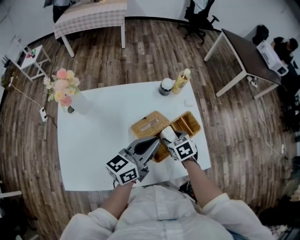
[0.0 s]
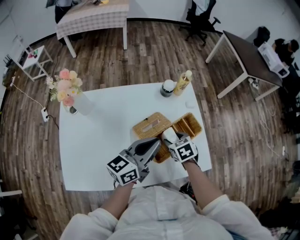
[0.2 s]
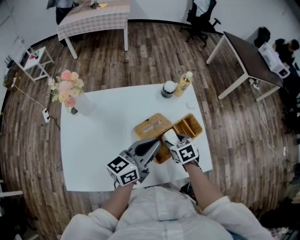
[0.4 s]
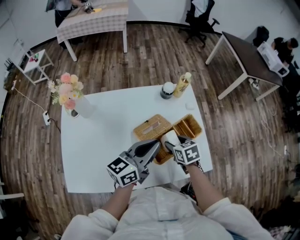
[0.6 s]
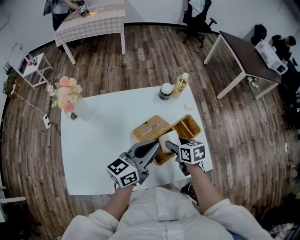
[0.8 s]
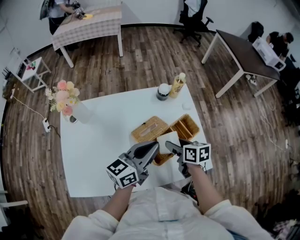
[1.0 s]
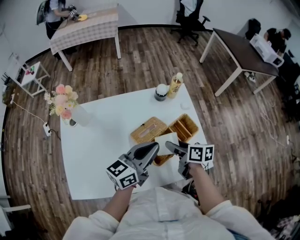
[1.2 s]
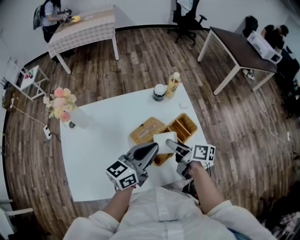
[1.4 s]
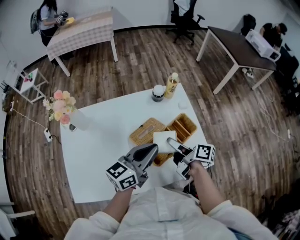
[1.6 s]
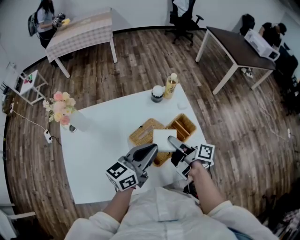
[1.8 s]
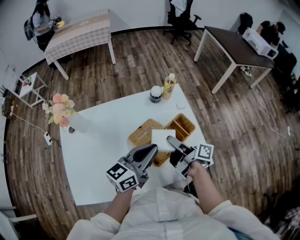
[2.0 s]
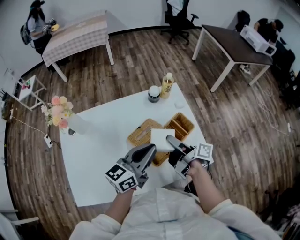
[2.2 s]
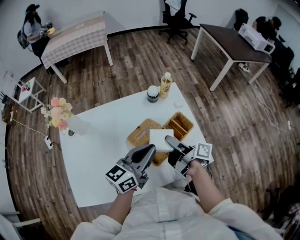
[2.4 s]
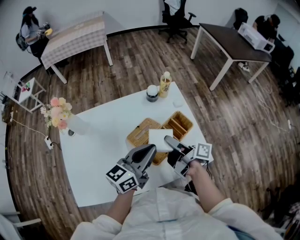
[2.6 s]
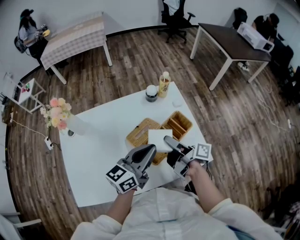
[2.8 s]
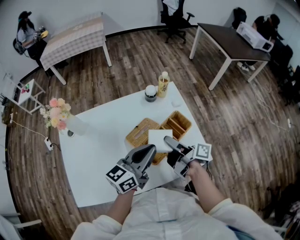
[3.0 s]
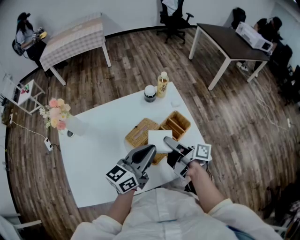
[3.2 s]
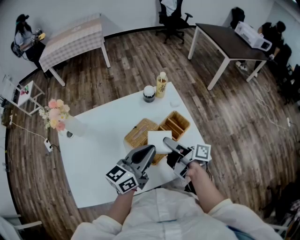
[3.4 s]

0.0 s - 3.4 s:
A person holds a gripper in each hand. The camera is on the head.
0.0 s - 1.6 s: The right gripper travels upward by approximately 10 cm, and rotates around the line of its fingers by about 70 degrees, clockwise from behind.
1.6 s - 3.4 s: There are only small adjustments of the grippers.

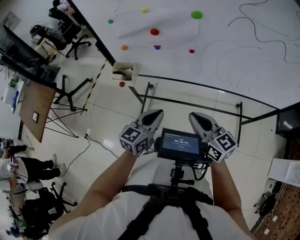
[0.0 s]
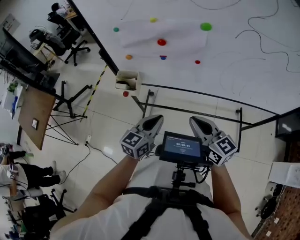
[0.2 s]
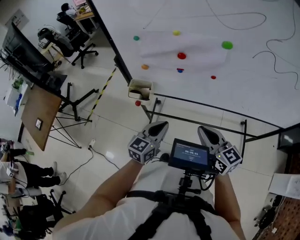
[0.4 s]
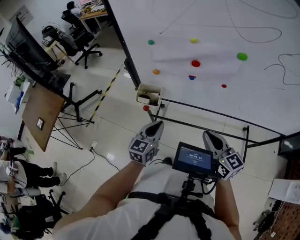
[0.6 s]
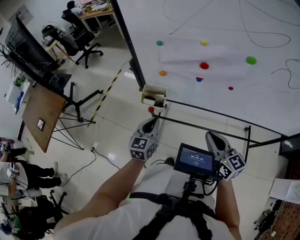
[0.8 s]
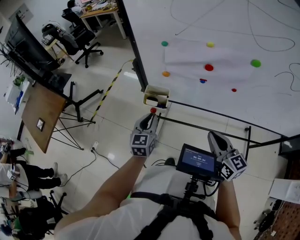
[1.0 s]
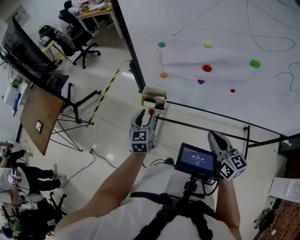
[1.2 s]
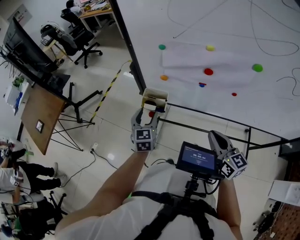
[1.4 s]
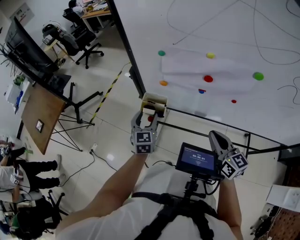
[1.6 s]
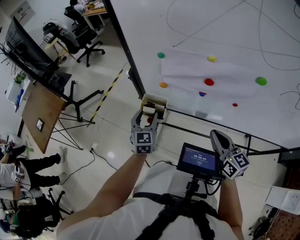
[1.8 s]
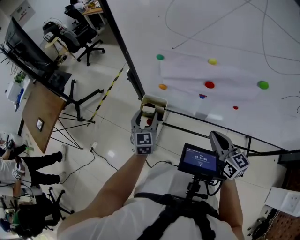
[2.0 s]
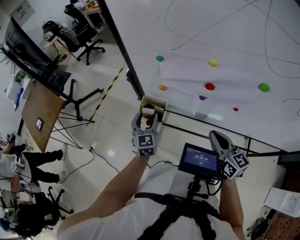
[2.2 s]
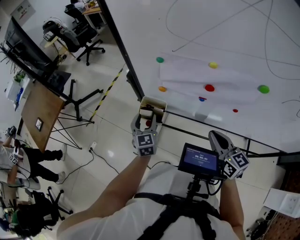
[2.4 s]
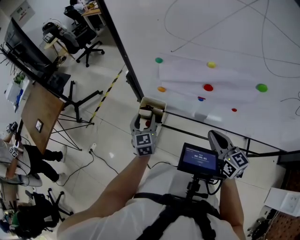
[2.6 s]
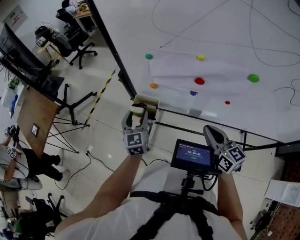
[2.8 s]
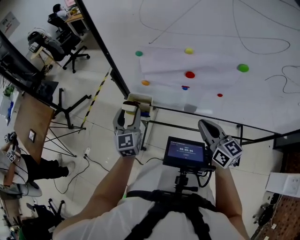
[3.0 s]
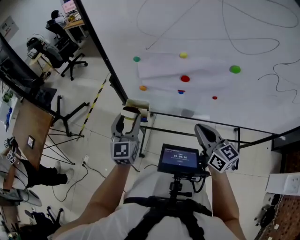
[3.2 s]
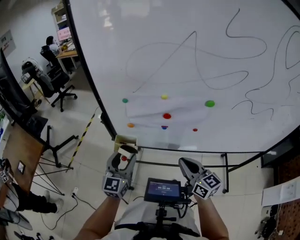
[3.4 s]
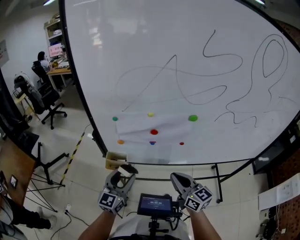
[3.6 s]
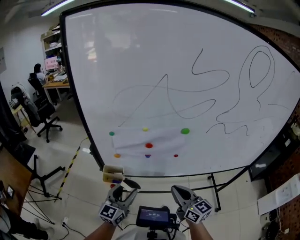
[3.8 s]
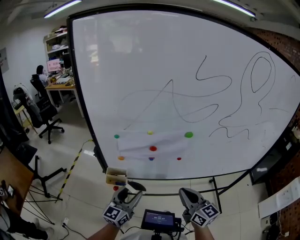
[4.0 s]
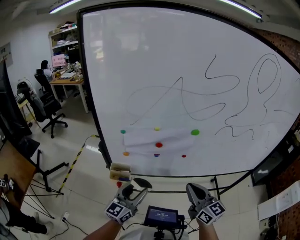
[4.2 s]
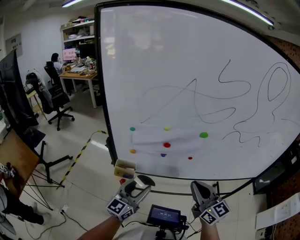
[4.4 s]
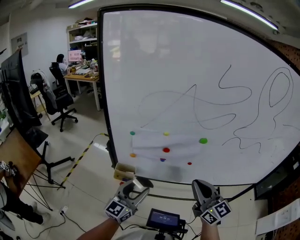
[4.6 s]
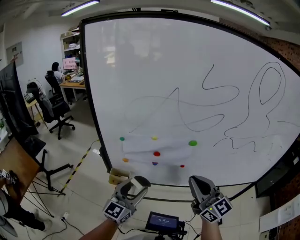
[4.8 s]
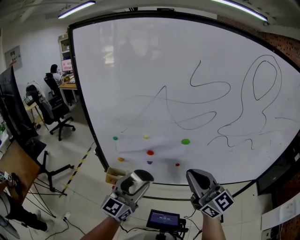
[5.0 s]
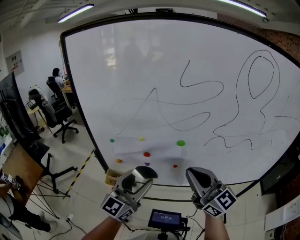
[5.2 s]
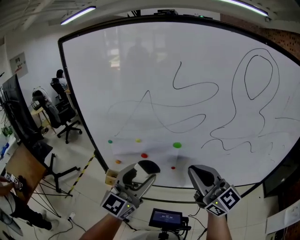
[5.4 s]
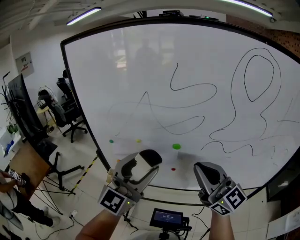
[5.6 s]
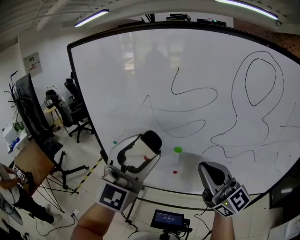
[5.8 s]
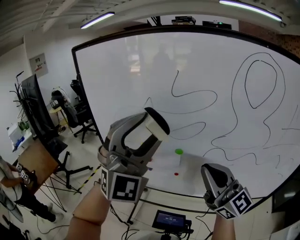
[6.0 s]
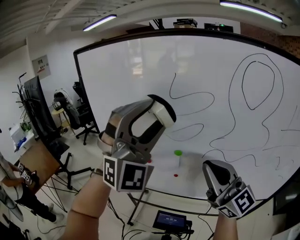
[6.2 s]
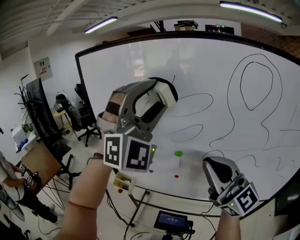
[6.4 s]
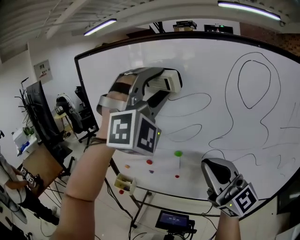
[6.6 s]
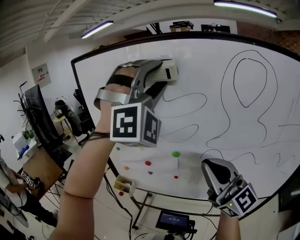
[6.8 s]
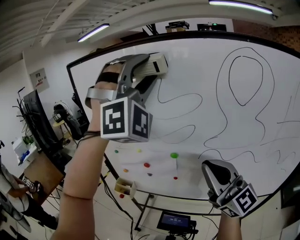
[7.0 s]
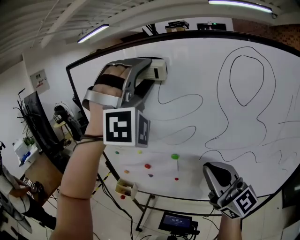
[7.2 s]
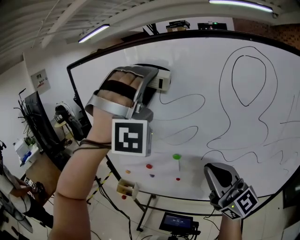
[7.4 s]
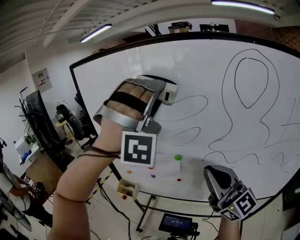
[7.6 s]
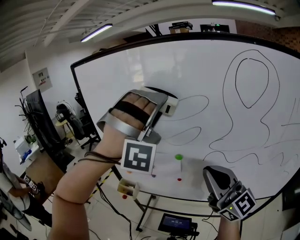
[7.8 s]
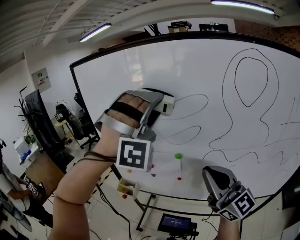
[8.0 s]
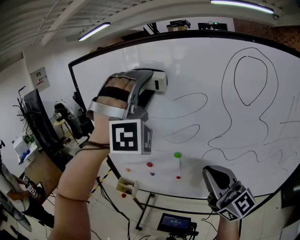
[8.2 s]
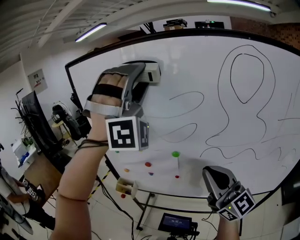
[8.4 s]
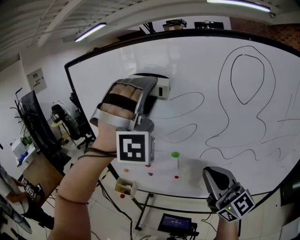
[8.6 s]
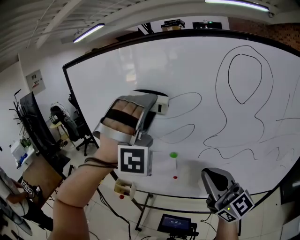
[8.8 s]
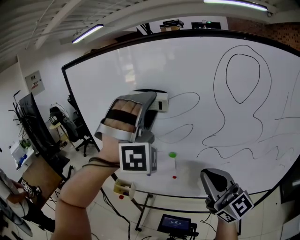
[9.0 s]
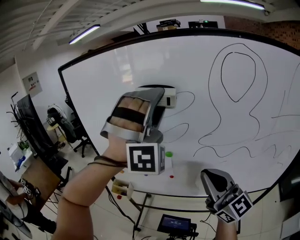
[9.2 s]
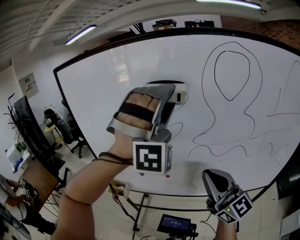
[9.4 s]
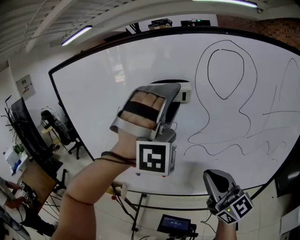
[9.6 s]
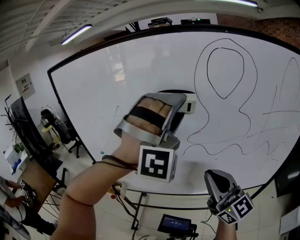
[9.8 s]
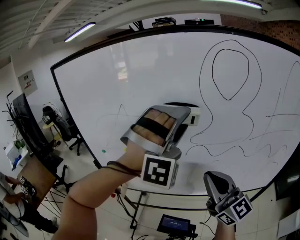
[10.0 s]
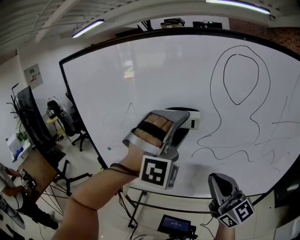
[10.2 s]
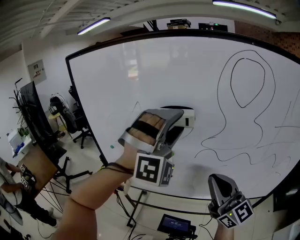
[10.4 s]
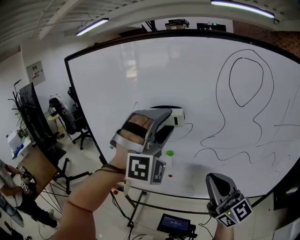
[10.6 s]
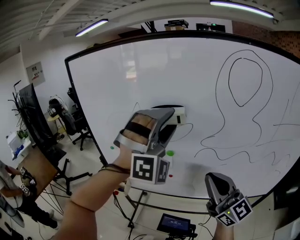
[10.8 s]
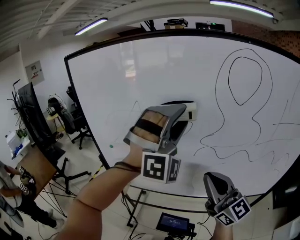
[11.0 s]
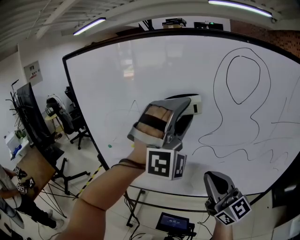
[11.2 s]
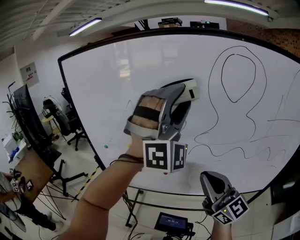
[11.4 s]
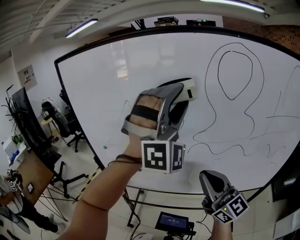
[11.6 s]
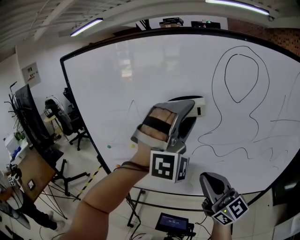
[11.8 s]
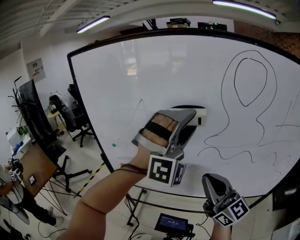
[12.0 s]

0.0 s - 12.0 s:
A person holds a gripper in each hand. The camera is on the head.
0.0 s - 1.6 s: The right gripper changes place by some 20 cm.
3.0 s - 4.4 s: The right gripper shifts some 15 cm upward, and rotates about 20 degrees.
4.4 s - 6.0 s: The right gripper moves upward, about 20 cm, and rotates approximately 30 degrees.

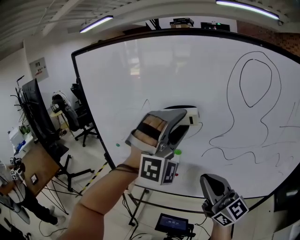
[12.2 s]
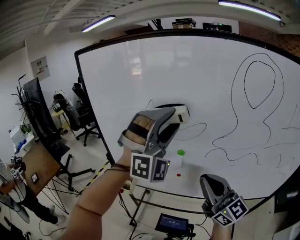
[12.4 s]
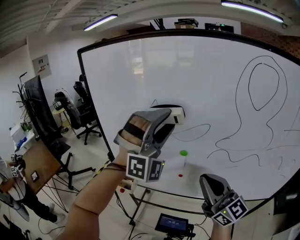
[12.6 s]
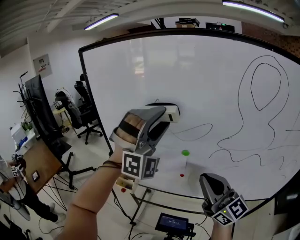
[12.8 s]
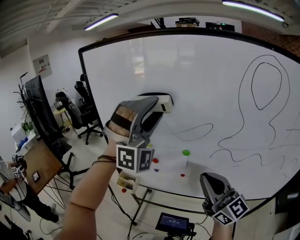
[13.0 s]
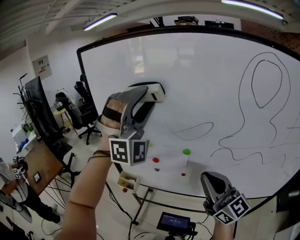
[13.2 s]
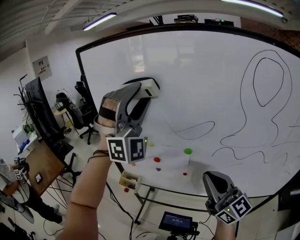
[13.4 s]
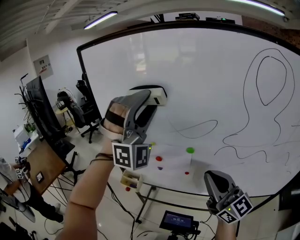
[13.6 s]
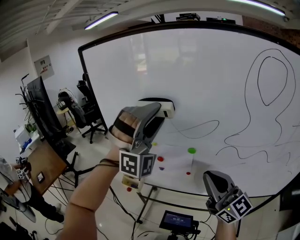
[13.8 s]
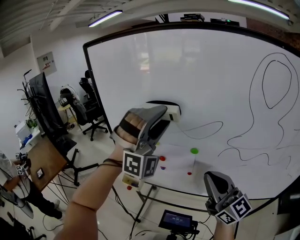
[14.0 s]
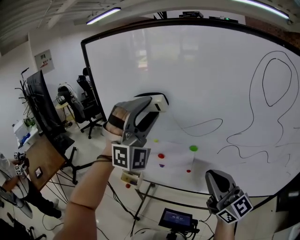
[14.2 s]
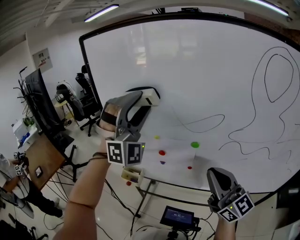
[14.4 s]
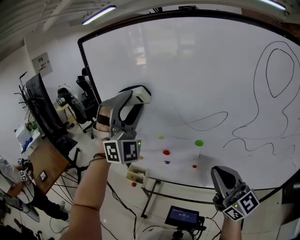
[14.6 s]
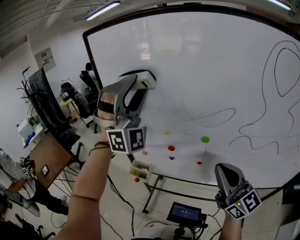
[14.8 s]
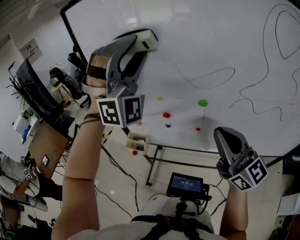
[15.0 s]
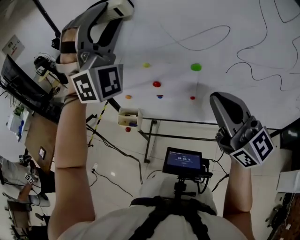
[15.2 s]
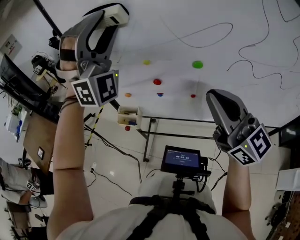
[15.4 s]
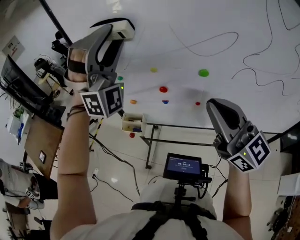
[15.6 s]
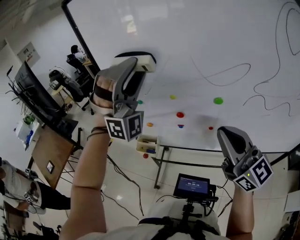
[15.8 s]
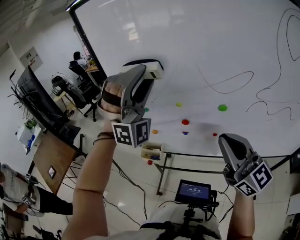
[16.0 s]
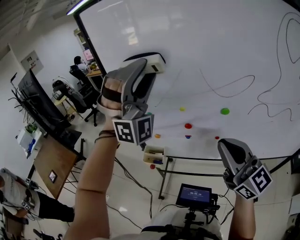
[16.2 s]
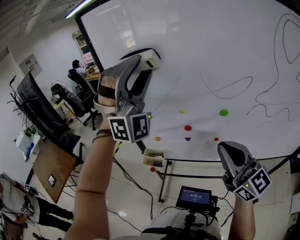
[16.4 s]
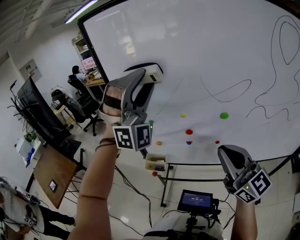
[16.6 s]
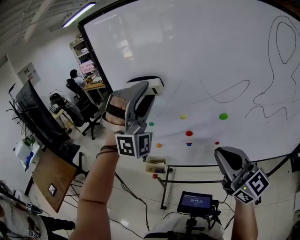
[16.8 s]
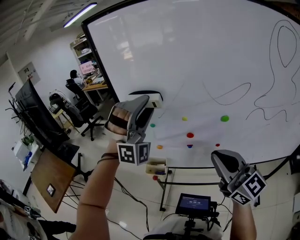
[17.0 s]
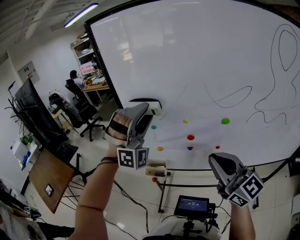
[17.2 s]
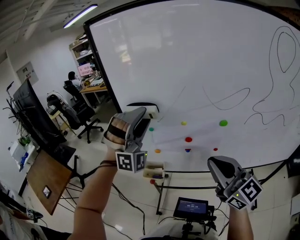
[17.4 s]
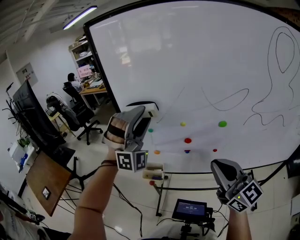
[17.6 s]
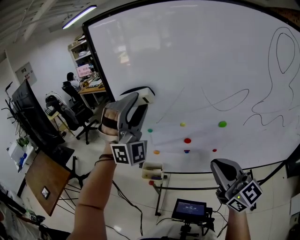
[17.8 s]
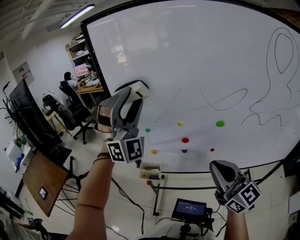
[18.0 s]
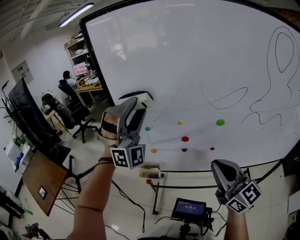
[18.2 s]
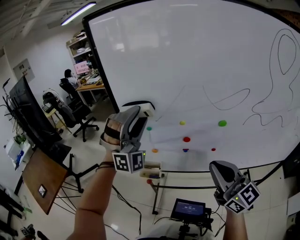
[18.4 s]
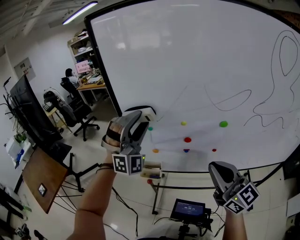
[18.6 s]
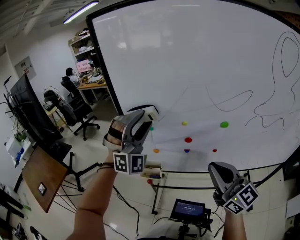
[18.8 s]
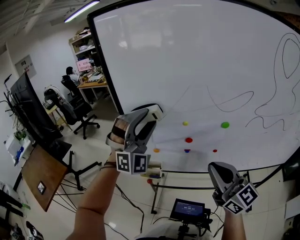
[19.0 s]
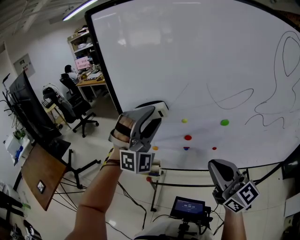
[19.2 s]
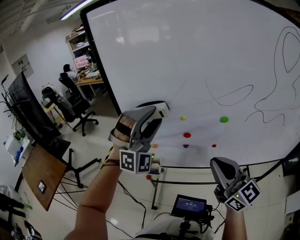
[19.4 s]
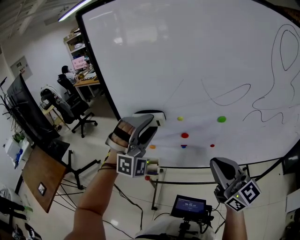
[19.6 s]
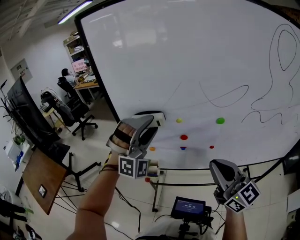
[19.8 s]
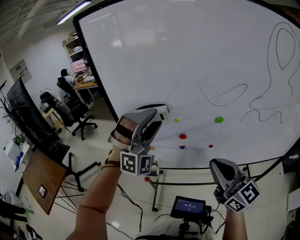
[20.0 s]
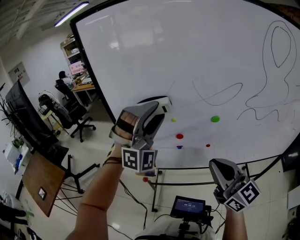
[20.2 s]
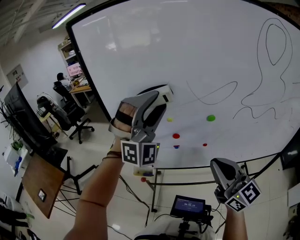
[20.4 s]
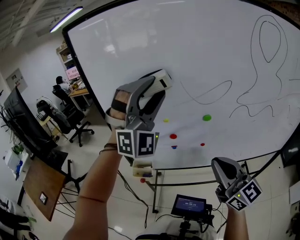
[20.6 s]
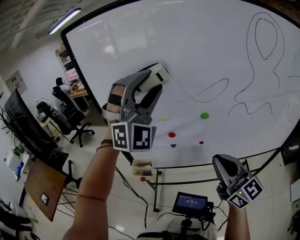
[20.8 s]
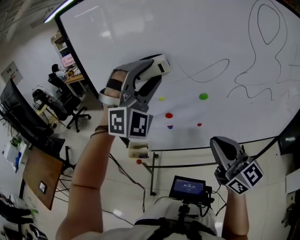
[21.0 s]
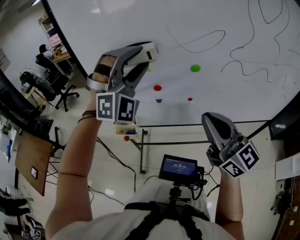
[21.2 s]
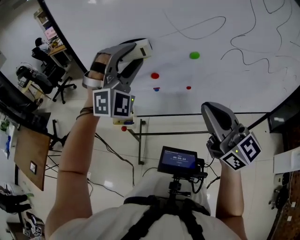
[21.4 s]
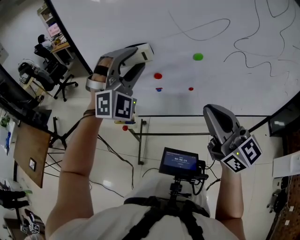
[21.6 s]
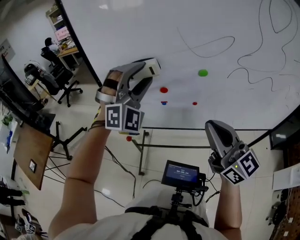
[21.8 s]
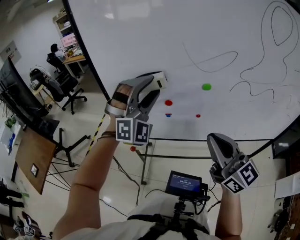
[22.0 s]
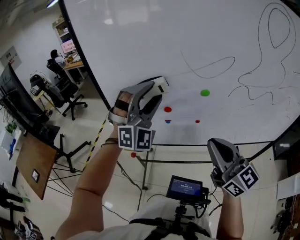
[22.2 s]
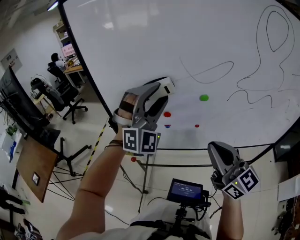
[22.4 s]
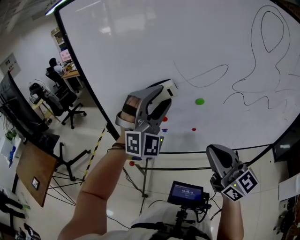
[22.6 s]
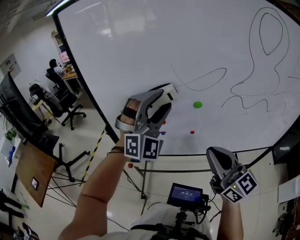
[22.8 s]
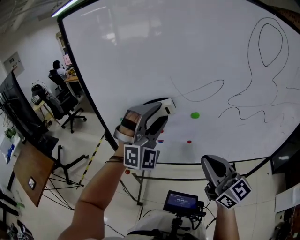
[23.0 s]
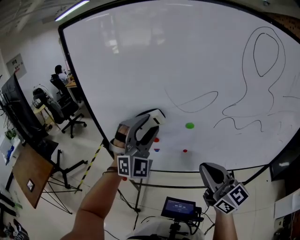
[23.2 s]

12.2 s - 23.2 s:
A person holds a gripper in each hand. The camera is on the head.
13.8 s - 15.4 s: The right gripper changes place by approximately 5 cm.
15.4 s - 17.0 s: The right gripper shifts by roughly 10 cm.
20.0 s - 21.6 s: The right gripper shifts by about 5 cm.
21.6 s - 23.2 s: The right gripper changes place by some 5 cm.
